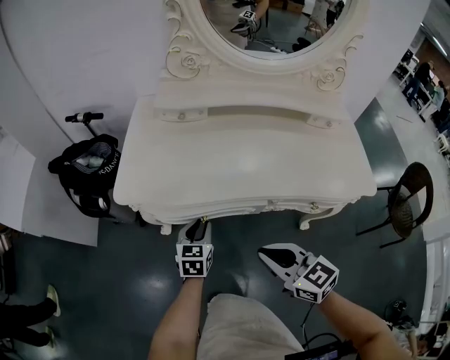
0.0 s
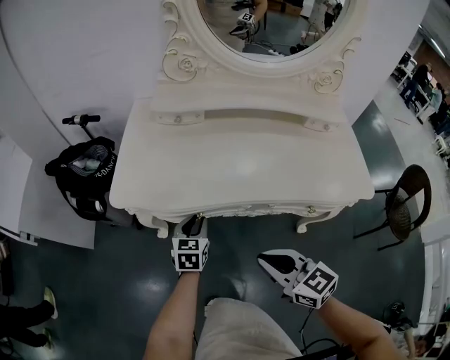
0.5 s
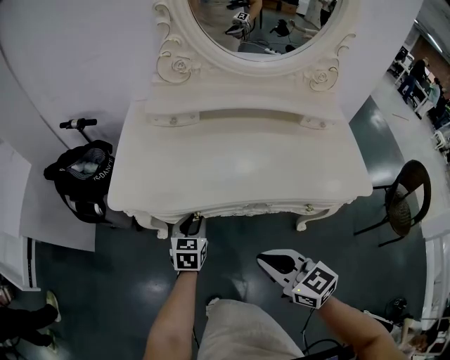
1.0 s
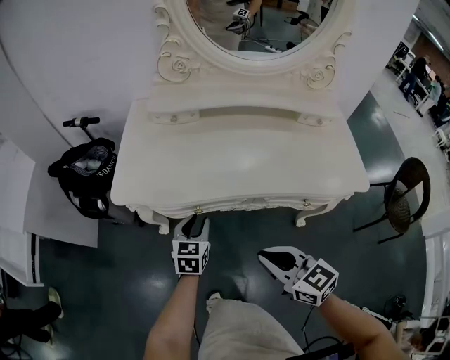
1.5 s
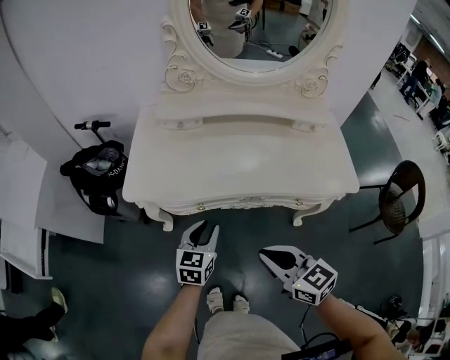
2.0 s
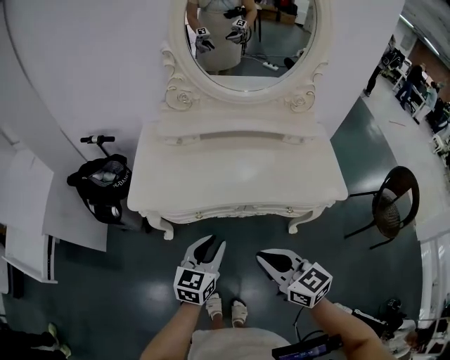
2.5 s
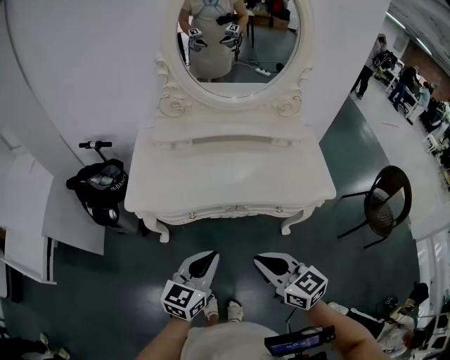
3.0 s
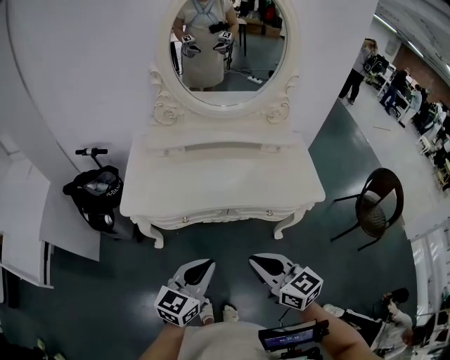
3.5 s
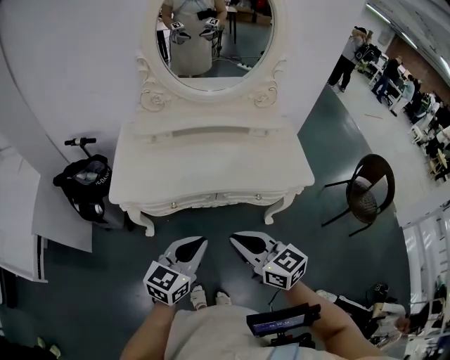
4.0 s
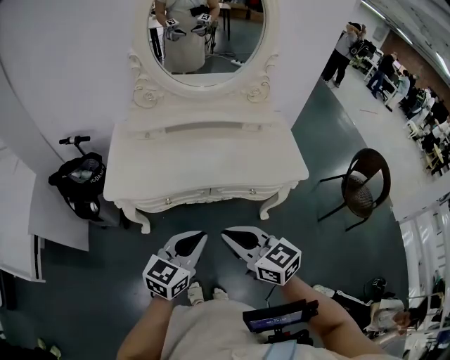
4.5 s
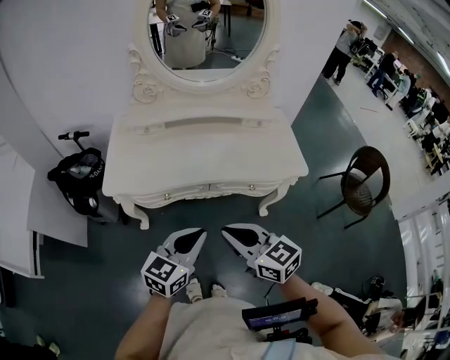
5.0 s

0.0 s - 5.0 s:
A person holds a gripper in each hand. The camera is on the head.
0.0 s - 2.5 s: The right gripper goes approximately 15 cm upward and backward, while the left gripper goes roughly 25 cm upward and backward, and turns by some 20 degrees.
2.5 s - 5.0 s: The left gripper shifts roughly 15 cm backward, upward and to the right, and closes. Meanwhile the right gripper goes approximately 5 cm upward.

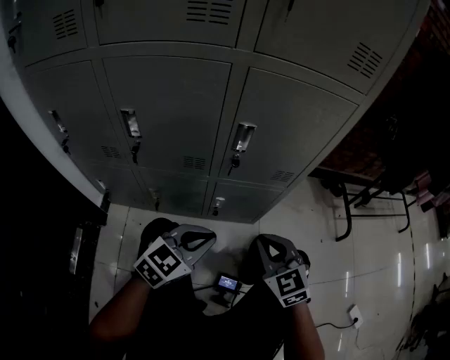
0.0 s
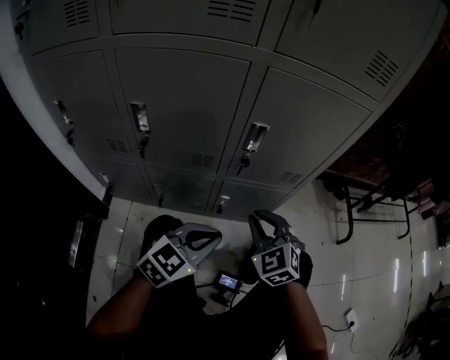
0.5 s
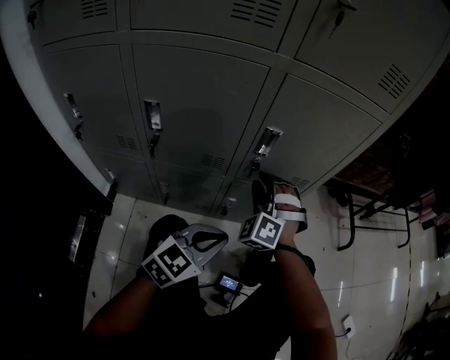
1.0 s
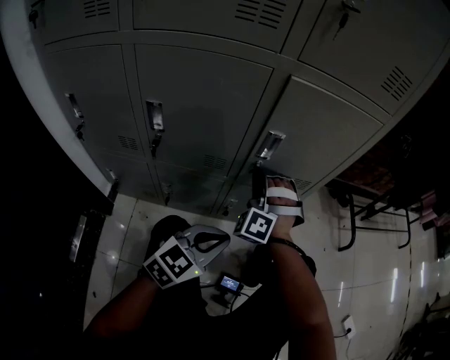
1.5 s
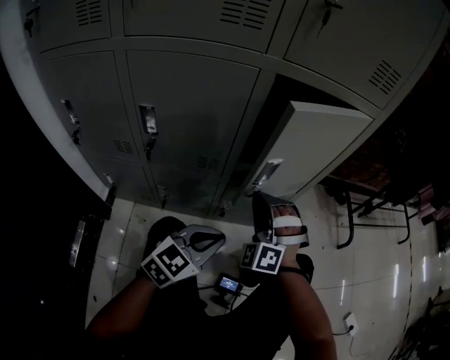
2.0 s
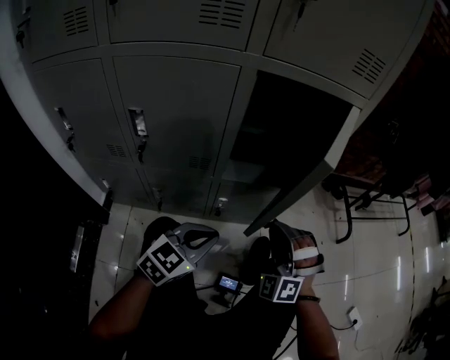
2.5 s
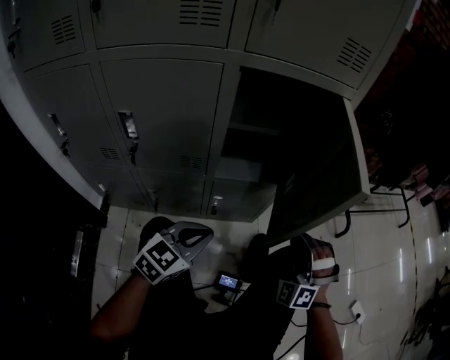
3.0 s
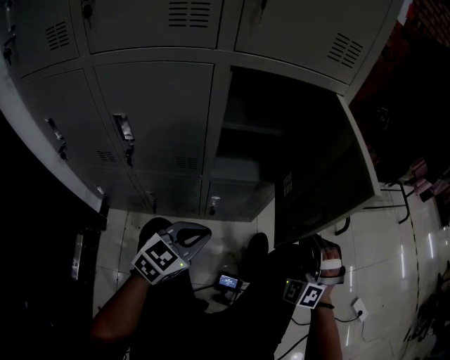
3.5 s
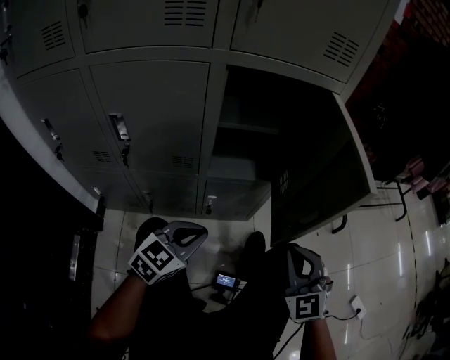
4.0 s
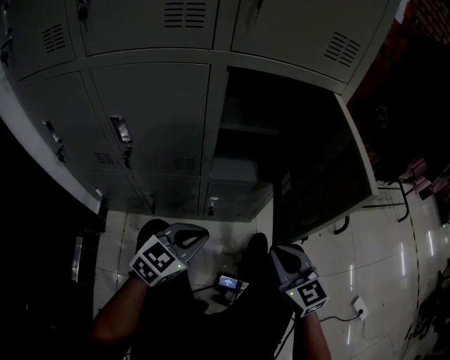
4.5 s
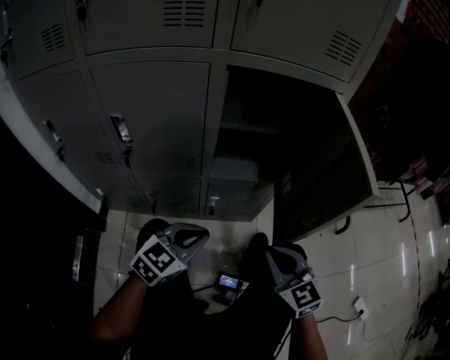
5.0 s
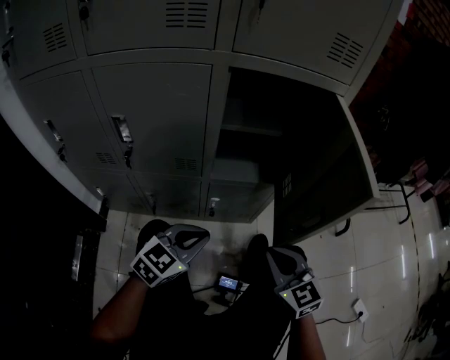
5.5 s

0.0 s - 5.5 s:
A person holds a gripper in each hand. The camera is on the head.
0.0 s - 2.0 s: The right gripper moves to the left and forward, approximately 10 cm, rotates around the line of its fingers by approximately 50 degrees, counterclockwise from behind, and opens and closes again.
2.0 s - 3.5 s: The right gripper shifts approximately 25 cm to the right.
3.5 s - 5.5 s: The right gripper heads to the left and backward, covering some 10 cm, and twists some 60 degrees clockwise, seen from behind.

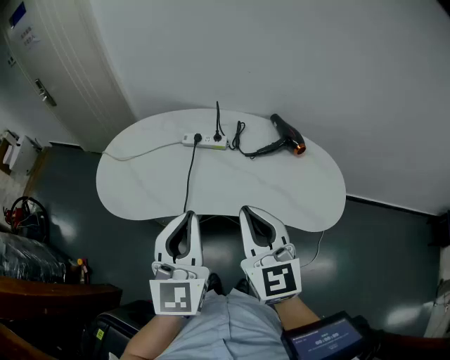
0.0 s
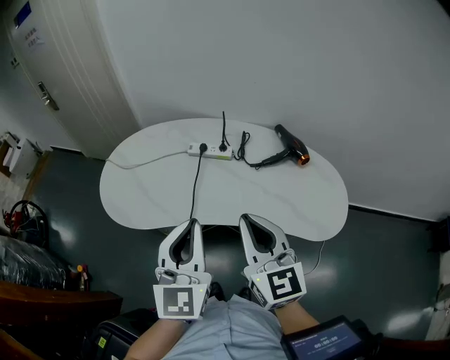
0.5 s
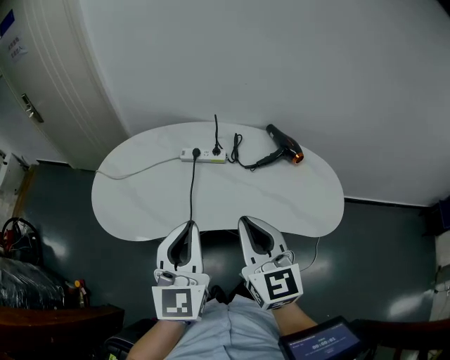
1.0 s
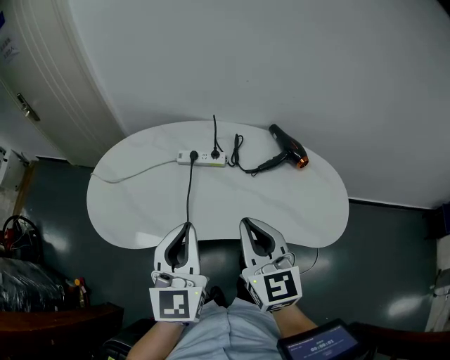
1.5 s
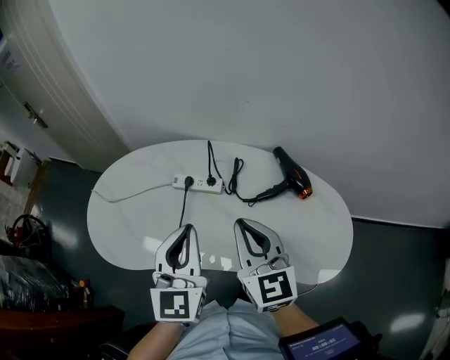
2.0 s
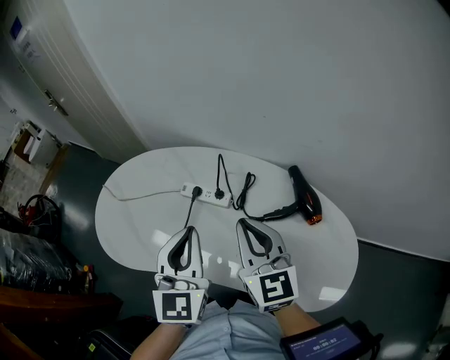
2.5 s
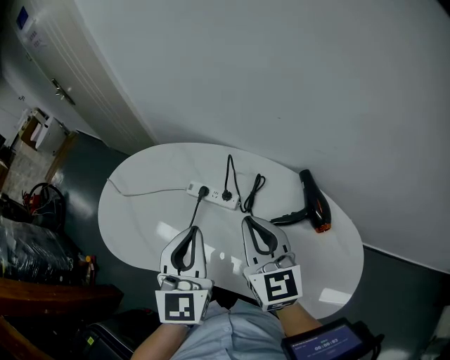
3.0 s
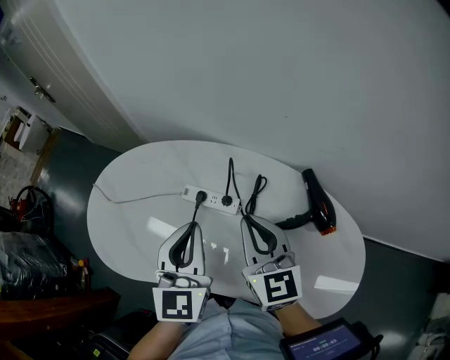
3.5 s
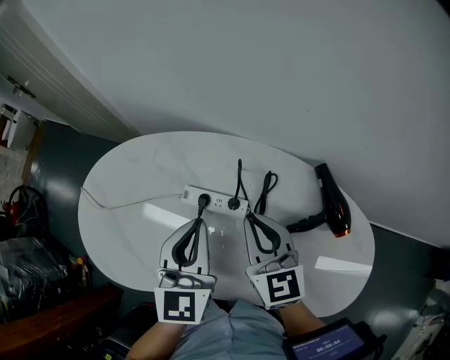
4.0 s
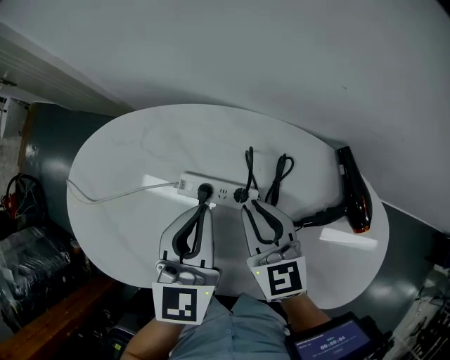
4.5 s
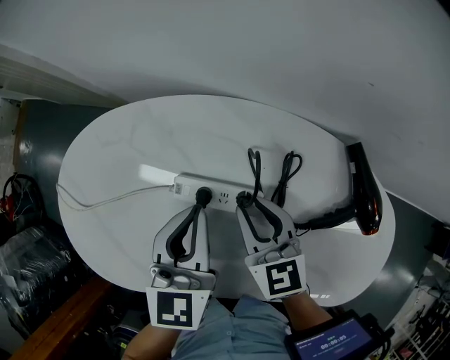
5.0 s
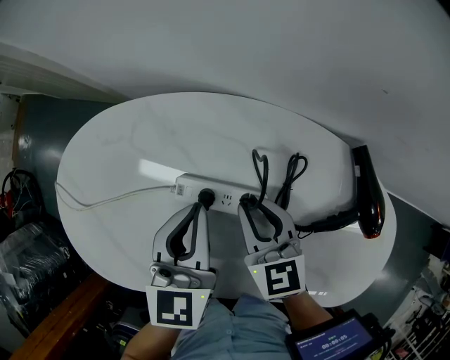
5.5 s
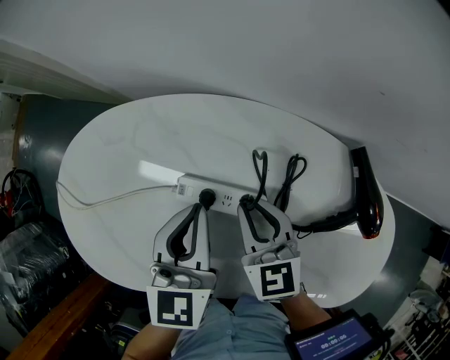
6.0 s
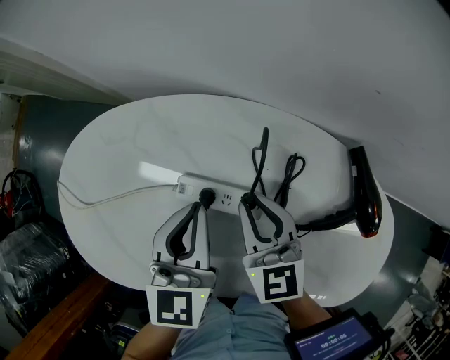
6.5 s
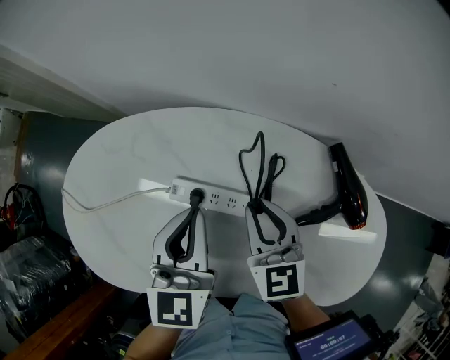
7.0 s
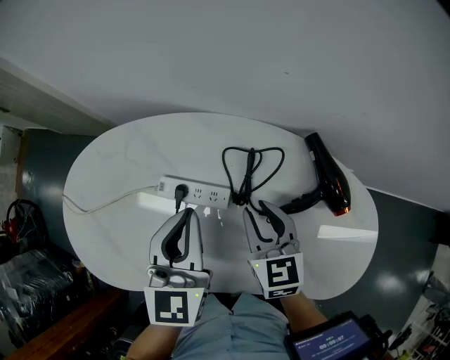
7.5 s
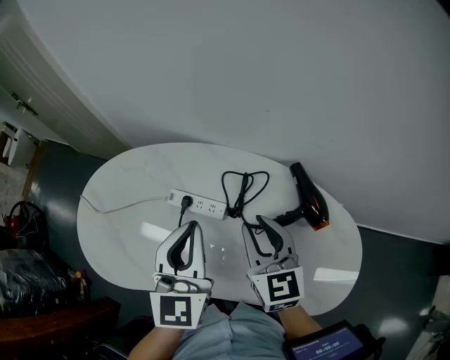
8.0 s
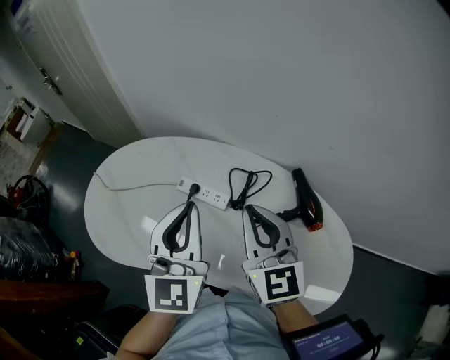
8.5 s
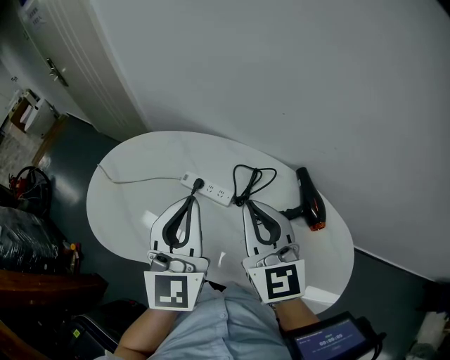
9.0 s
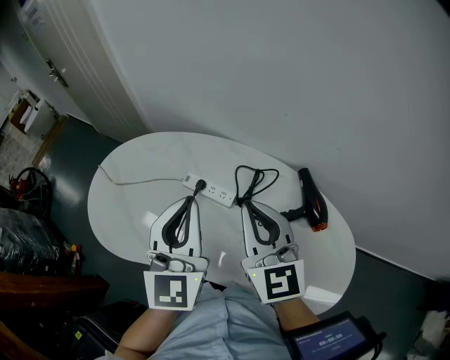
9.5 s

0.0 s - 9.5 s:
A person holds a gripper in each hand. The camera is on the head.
0.0 s - 2.0 s: Both grippers move forward, about 15 cm.
2.0 s - 4.0 s: The grippers both shift forward and downward by about 20 cm.
4.0 s - 5.5 s: The right gripper moves downward, about 10 cm; the left gripper travels downward and forward by roughly 10 cm.
5.5 s - 7.5 s: The left gripper moves upward, roughly 5 cm. Meanwhile the right gripper heads to the right and backward, covering some 10 cm.
7.5 s - 9.5 s: The left gripper heads upward and backward, covering about 15 cm, and swivels about 20 degrees, while the right gripper goes some 20 cm upward, angles its fingers upward, by about 30 degrees, and closes up.

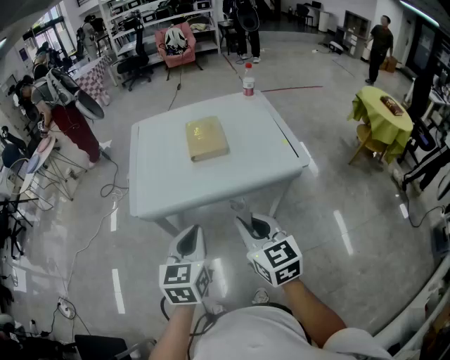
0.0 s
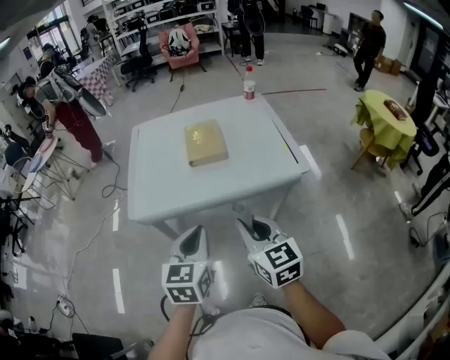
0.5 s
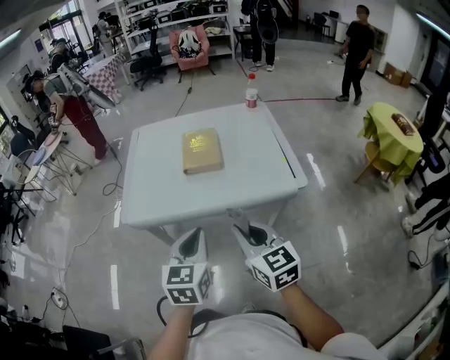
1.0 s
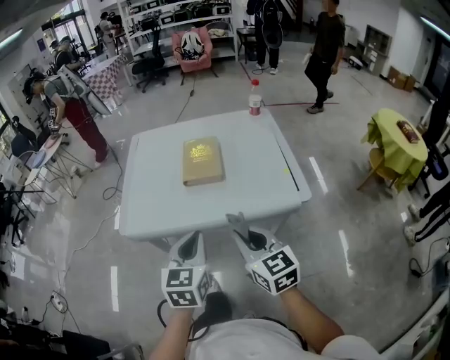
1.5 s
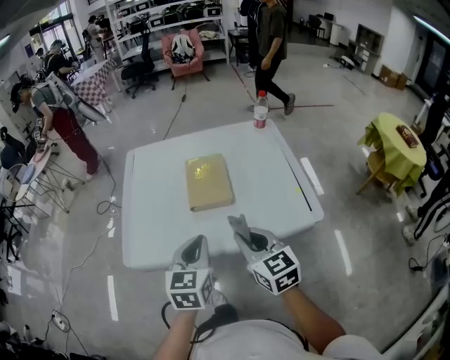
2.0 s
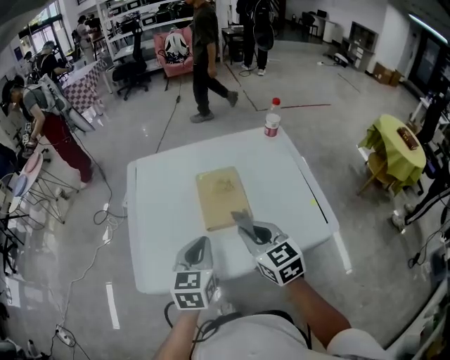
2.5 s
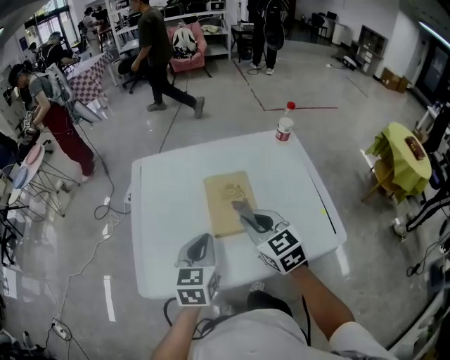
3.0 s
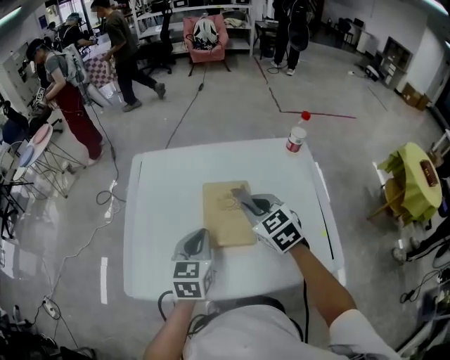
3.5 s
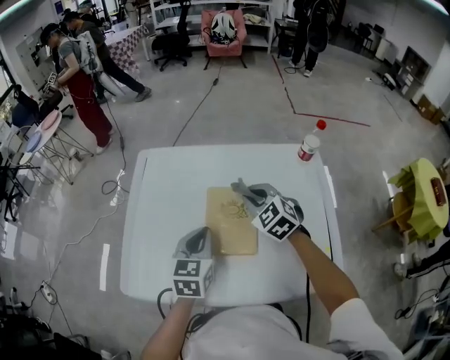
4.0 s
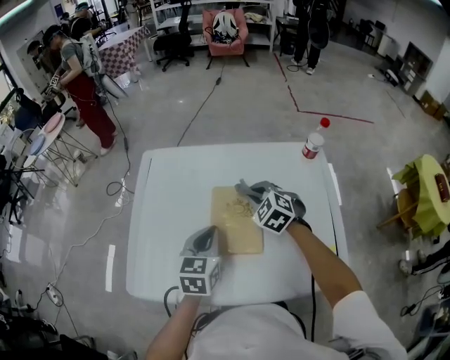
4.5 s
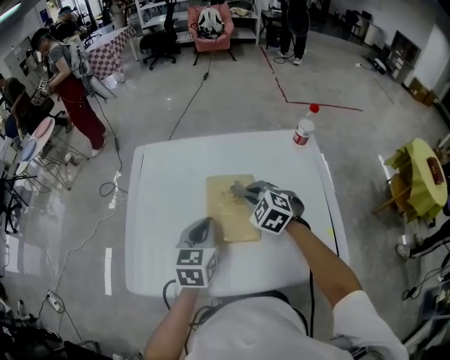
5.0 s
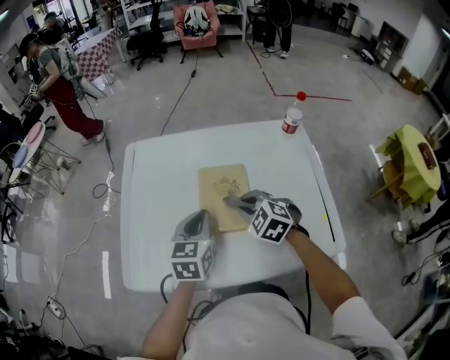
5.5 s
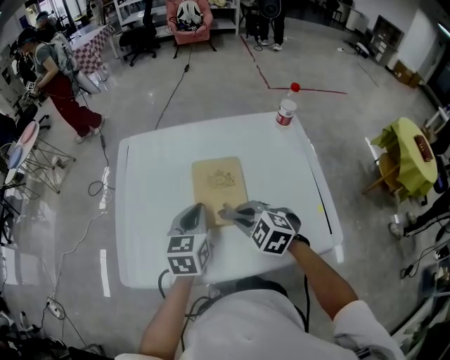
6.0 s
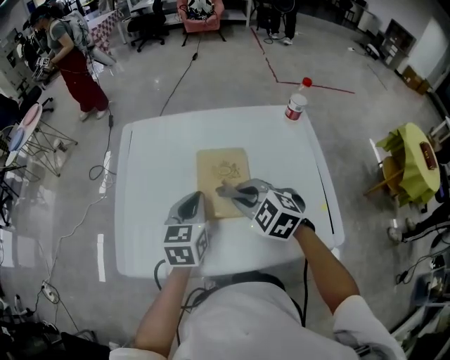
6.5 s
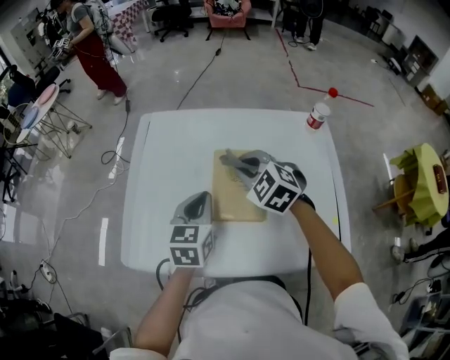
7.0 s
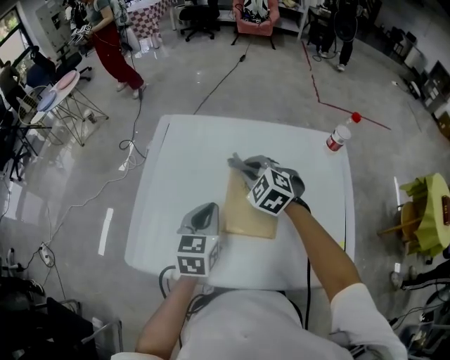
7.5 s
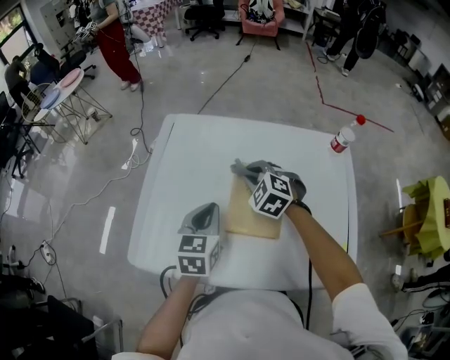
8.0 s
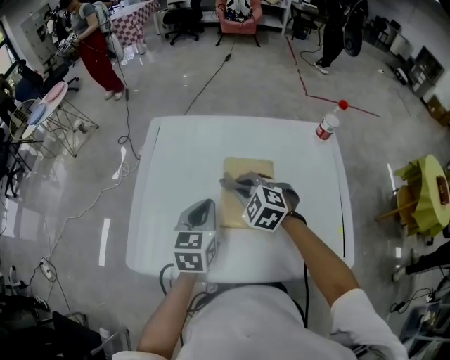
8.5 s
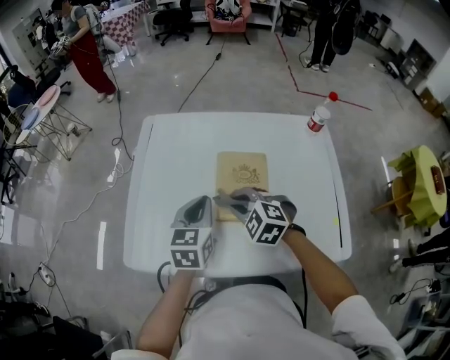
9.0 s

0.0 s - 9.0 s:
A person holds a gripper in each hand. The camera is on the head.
0.0 s - 2.0 s: The grippers both shift forward by some 20 cm.
2.0 s - 4.5 s: The right gripper moves forward, roughly 35 cm, and rotates around the line of its fingers by roughly 40 degrees, counterclockwise from behind; the left gripper moves forward, approximately 25 cm.
4.5 s - 7.0 s: The right gripper moves to the left and upward, approximately 10 cm, and reaches approximately 15 cm backward, then returns.
7.0 s - 9.0 s: The right gripper travels backward, downward and to the left by approximately 10 cm.
